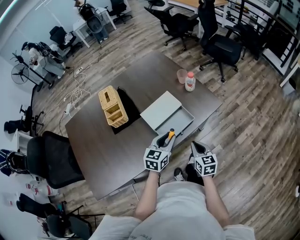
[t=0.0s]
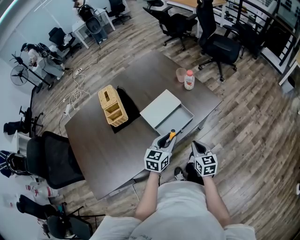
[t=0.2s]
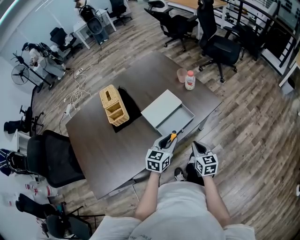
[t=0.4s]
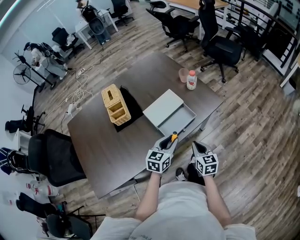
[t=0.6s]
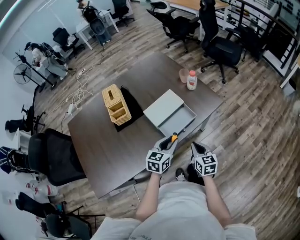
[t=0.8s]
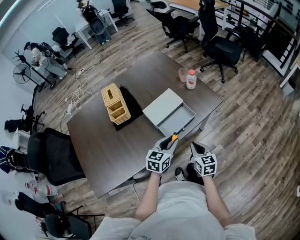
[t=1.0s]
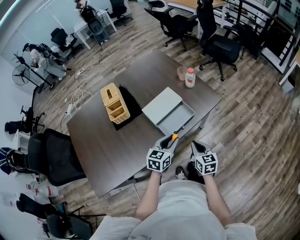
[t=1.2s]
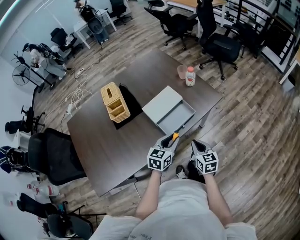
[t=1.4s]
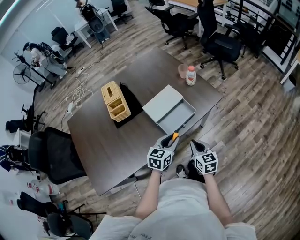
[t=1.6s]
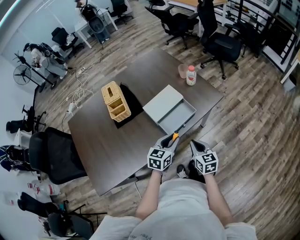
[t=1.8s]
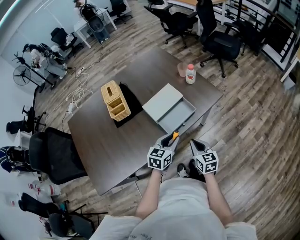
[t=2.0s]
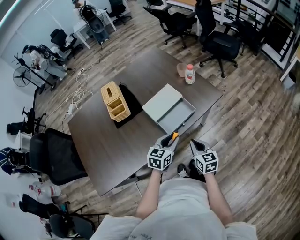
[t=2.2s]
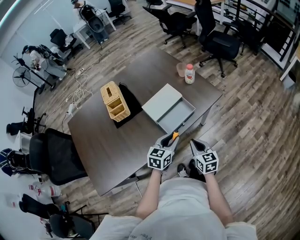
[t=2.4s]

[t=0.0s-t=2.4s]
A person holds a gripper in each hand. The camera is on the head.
t=0.0s to t=1.2s: The left gripper ends up roughly 5 cm from where it was.
t=1.2s to t=2.4s: The grippers make only small movements.

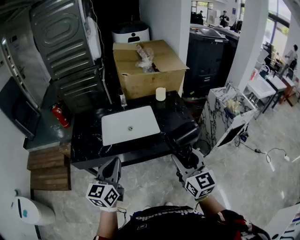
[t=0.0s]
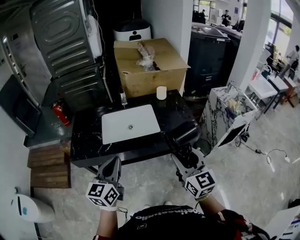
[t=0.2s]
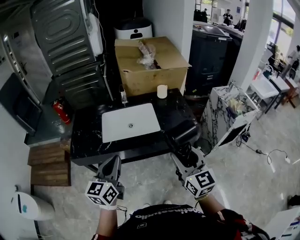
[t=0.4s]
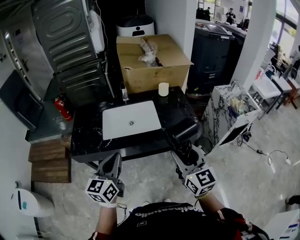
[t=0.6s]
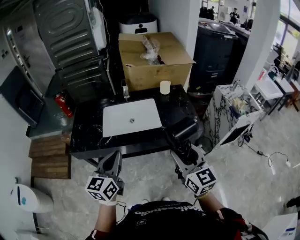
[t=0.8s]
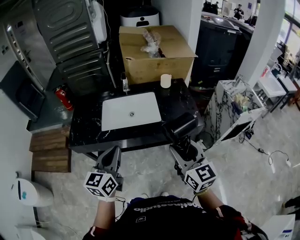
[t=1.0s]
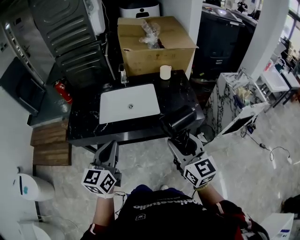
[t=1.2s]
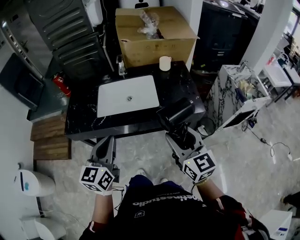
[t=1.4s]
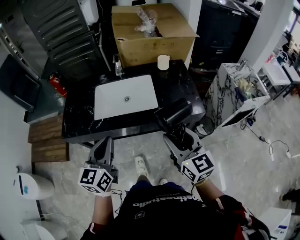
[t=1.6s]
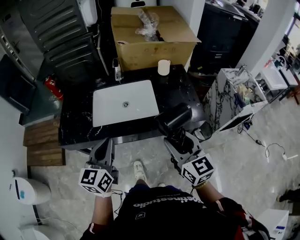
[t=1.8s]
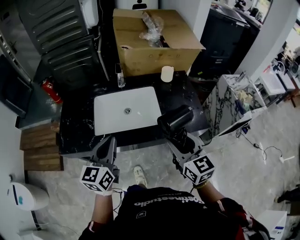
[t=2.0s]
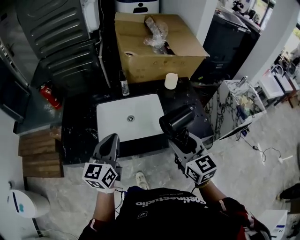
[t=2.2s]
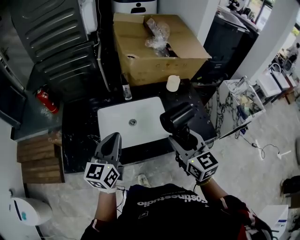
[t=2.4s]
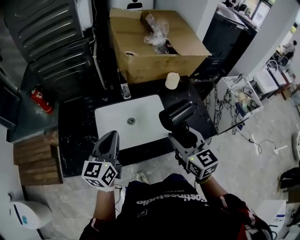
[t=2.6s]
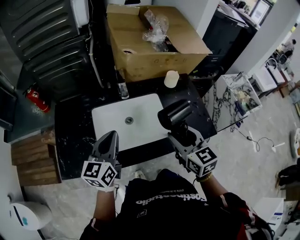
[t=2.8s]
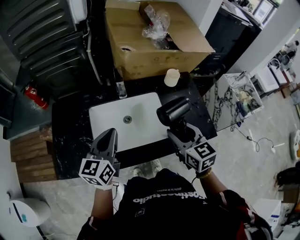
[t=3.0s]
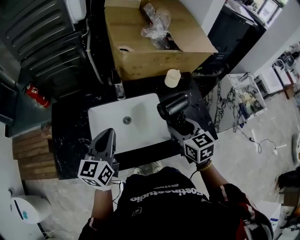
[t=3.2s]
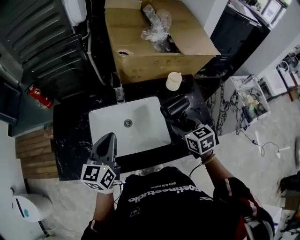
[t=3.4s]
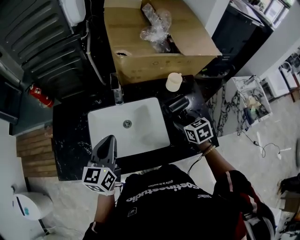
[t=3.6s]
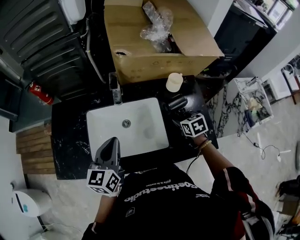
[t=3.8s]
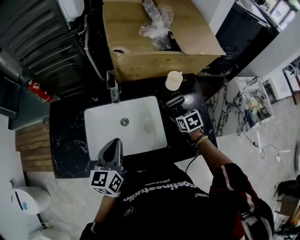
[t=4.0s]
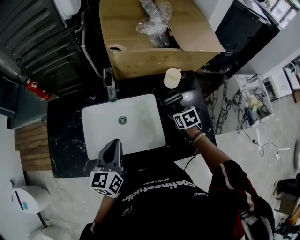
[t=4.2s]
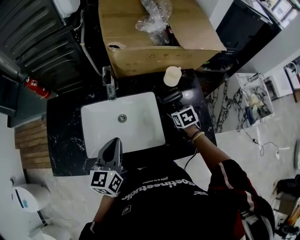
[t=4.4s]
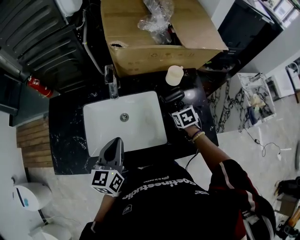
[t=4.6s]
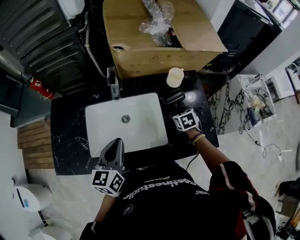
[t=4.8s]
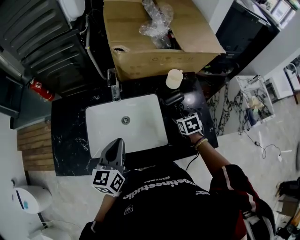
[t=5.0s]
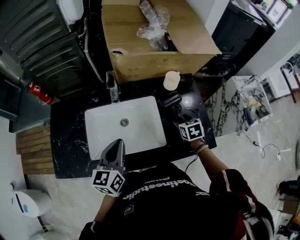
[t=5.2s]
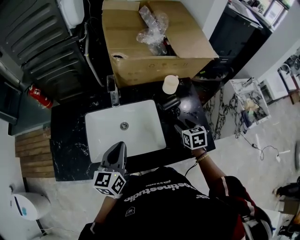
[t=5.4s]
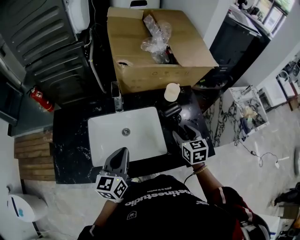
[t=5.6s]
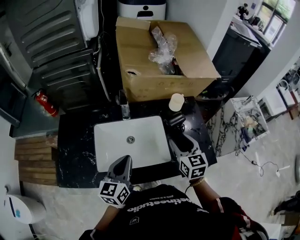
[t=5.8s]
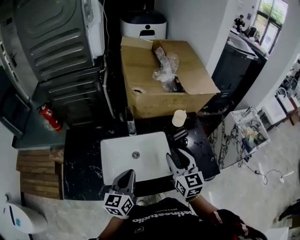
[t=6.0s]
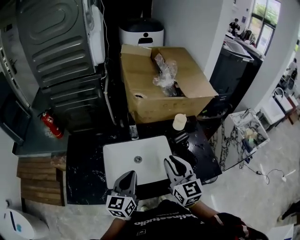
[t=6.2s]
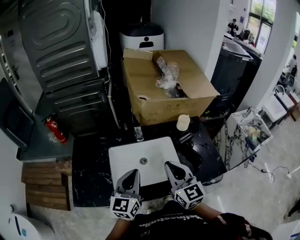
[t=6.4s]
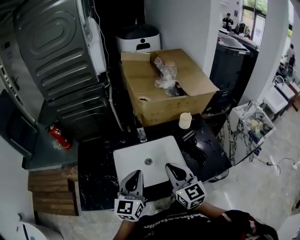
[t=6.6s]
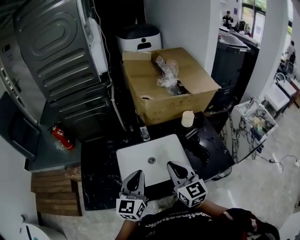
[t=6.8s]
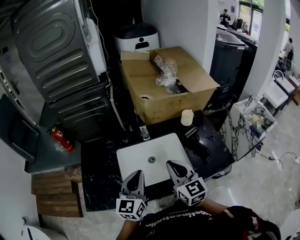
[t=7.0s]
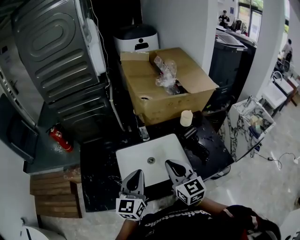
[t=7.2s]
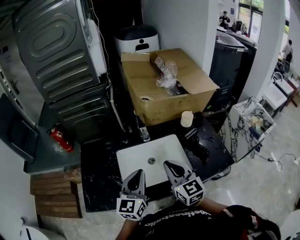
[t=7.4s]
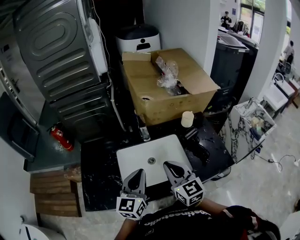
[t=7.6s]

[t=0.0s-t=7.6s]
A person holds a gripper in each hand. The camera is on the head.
t=0.0s to t=1.6s: The right gripper travels forward by some 5 cm; the left gripper shifts by approximately 5 cm.
t=1.6s to t=3.0s: The grippers both shift forward by some 25 cm.
t=3.0s to t=4.6s: The right gripper moves downward, forward and to the right, some 30 cm, and points its fingers some 30 degrees further downward; the left gripper is displaced to the right by some 10 cm.
t=4.6s to t=6.0s: The left gripper changes place by roughly 5 cm, while the right gripper travels upward, to the left and backward by some 30 cm, and tilts its fingers roughly 50 degrees upward.
t=6.0s to t=7.6s: The right gripper shifts roughly 15 cm to the left and backward, and closes up, while the left gripper shifts about 5 cm upward.

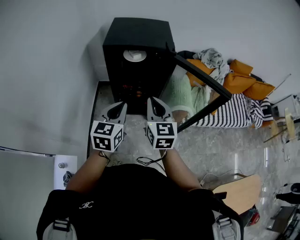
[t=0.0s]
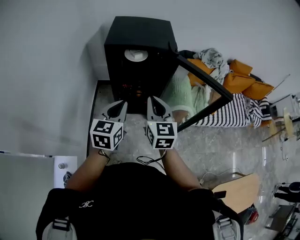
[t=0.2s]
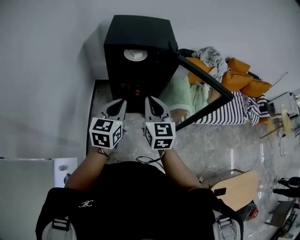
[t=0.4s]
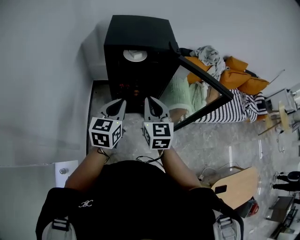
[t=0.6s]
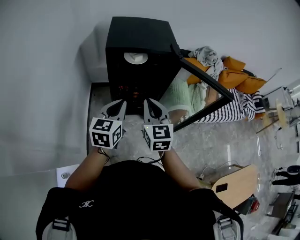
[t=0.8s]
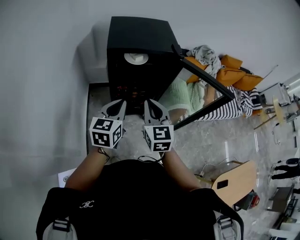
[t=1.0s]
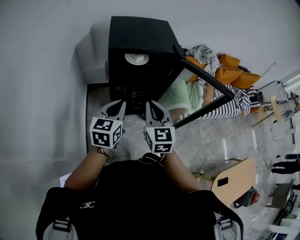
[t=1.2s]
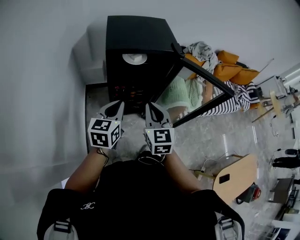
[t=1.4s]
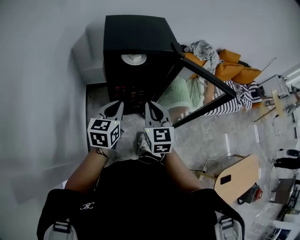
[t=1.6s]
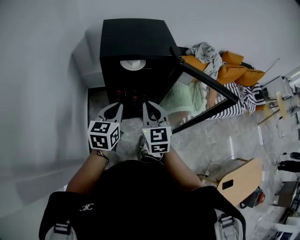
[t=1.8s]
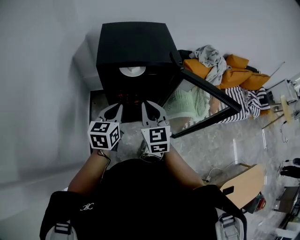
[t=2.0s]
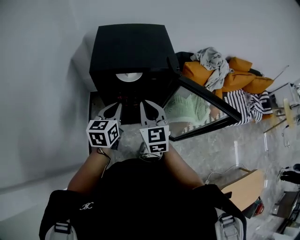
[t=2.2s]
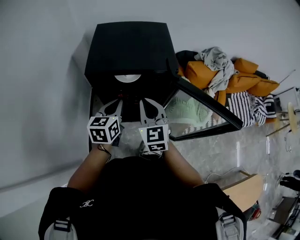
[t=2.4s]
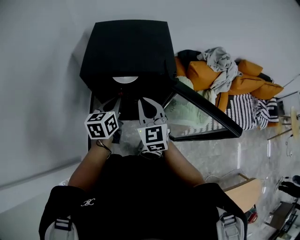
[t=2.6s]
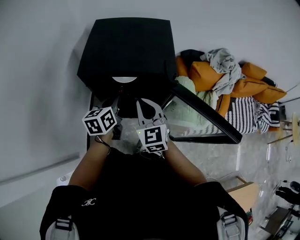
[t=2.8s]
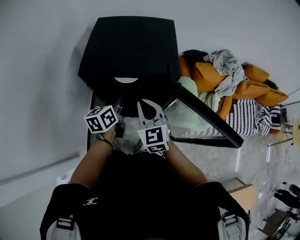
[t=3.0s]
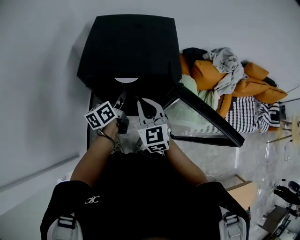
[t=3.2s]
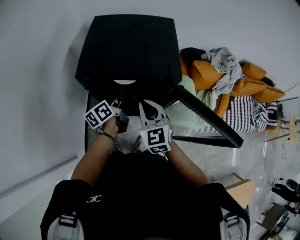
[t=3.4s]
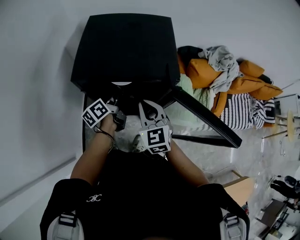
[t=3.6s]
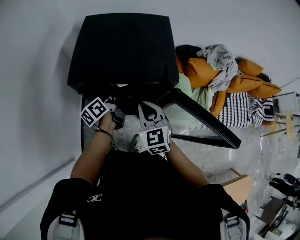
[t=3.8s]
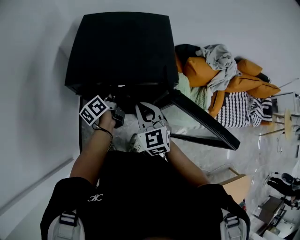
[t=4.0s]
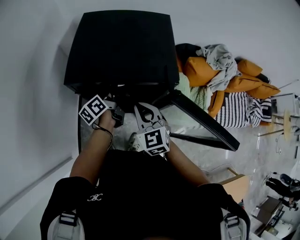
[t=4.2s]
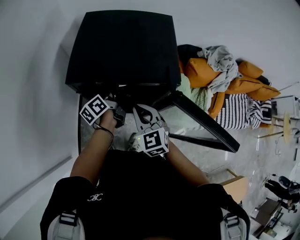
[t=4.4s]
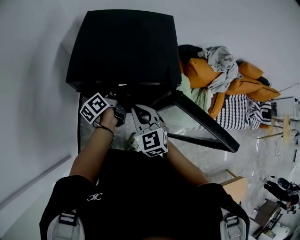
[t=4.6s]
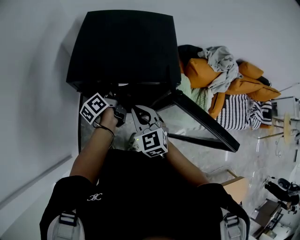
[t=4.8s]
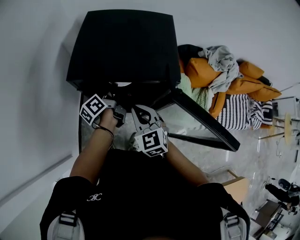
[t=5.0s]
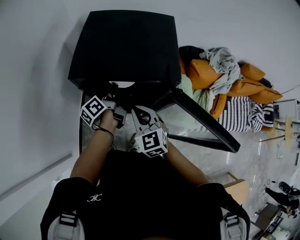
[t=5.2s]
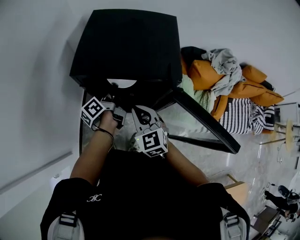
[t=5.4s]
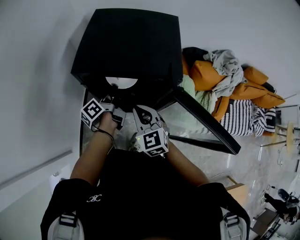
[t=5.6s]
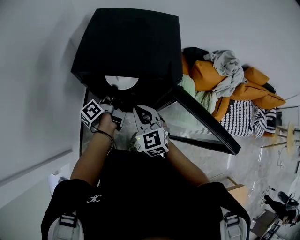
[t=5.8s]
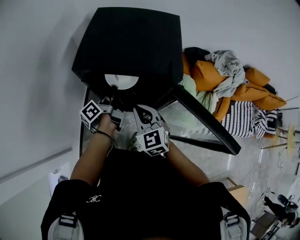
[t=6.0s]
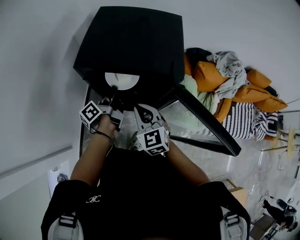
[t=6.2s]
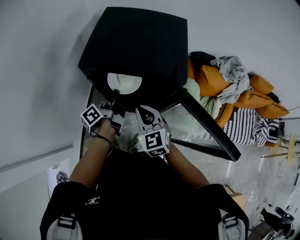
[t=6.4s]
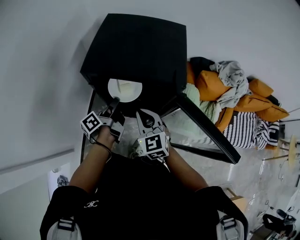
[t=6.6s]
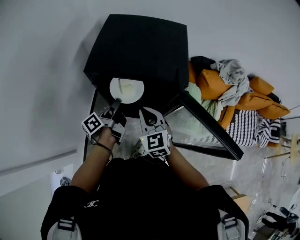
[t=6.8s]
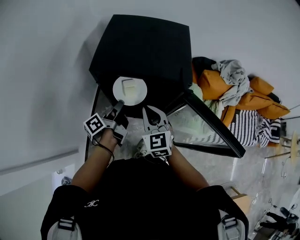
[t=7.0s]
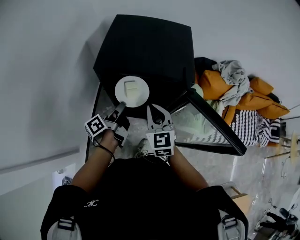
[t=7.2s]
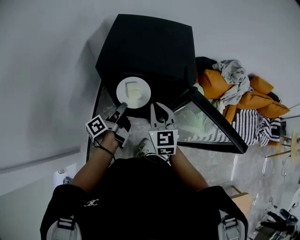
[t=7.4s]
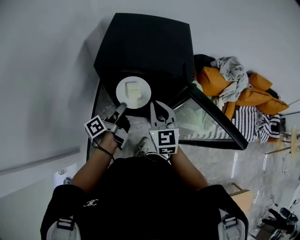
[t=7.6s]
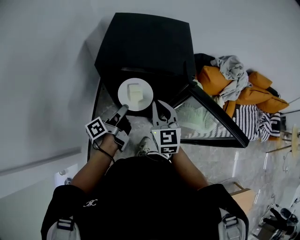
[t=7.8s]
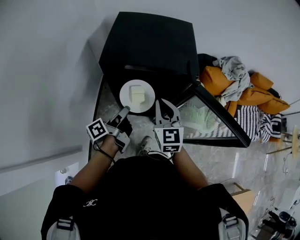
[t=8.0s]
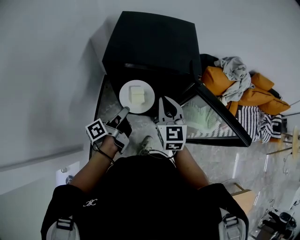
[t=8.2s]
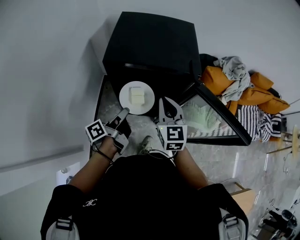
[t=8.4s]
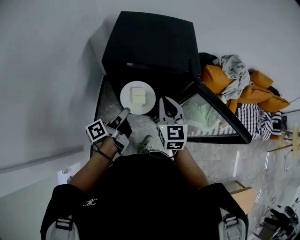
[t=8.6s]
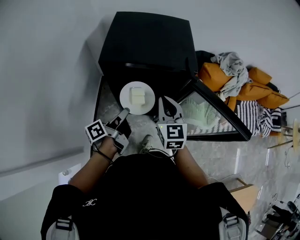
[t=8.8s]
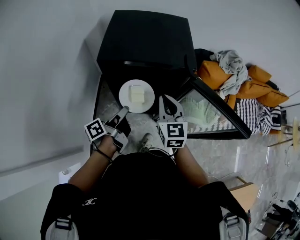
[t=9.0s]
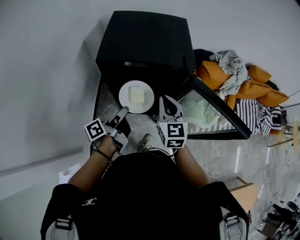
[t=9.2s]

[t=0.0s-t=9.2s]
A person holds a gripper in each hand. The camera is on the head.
t=0.0s to t=1.6s: The left gripper heads to the left and forward, covering roughly 15 cm. The right gripper moves to the left, approximately 10 cm.
t=1.6s to t=3.0s: The grippers both shift forward by roughly 20 cm. The left gripper rotates roughly 30 degrees, while the right gripper rotates about 20 degrees.
t=3.0s to t=4.6s: The left gripper heads forward, covering roughly 10 cm, and turns by approximately 30 degrees.
t=4.6s to t=6.2s: The left gripper goes some 5 cm backward, and rotates approximately 20 degrees.
t=6.2s to t=7.6s: The left gripper shifts roughly 10 cm backward.
t=7.6s to t=9.2s: The grippers make only small movements.

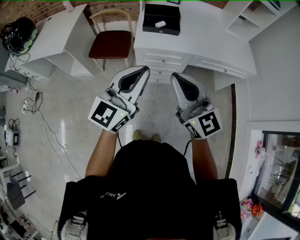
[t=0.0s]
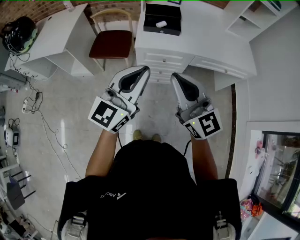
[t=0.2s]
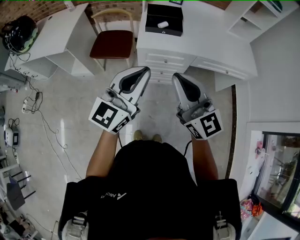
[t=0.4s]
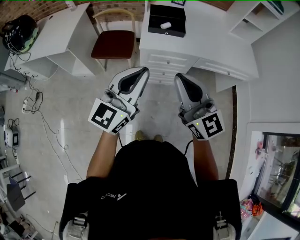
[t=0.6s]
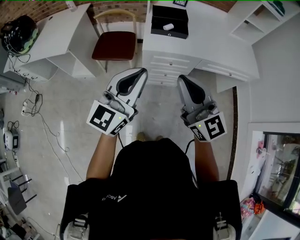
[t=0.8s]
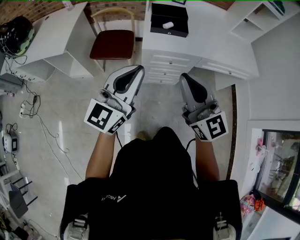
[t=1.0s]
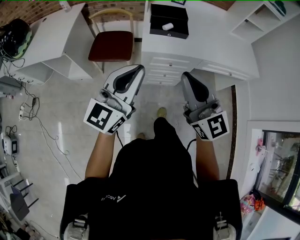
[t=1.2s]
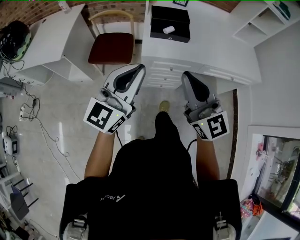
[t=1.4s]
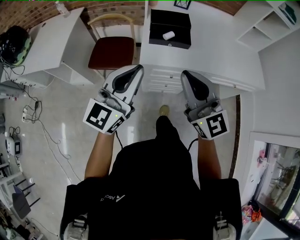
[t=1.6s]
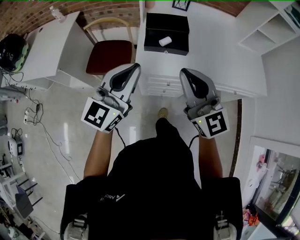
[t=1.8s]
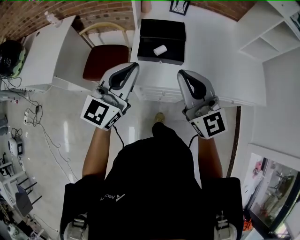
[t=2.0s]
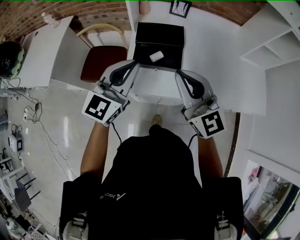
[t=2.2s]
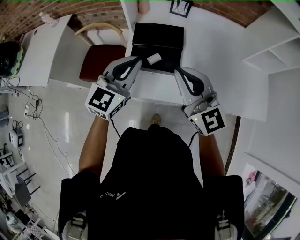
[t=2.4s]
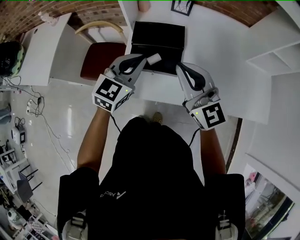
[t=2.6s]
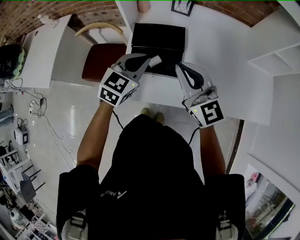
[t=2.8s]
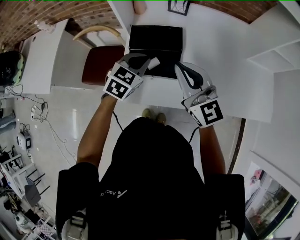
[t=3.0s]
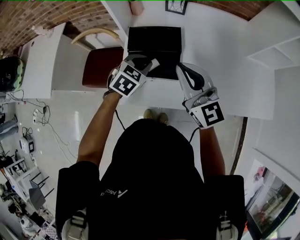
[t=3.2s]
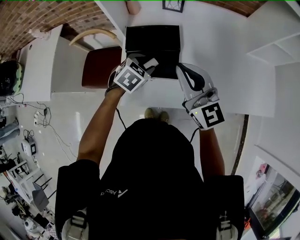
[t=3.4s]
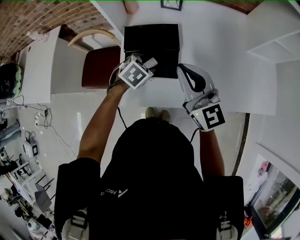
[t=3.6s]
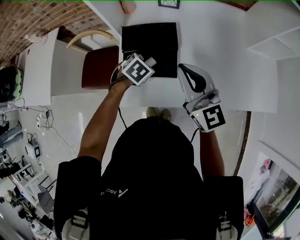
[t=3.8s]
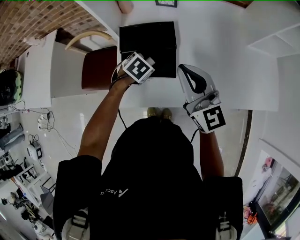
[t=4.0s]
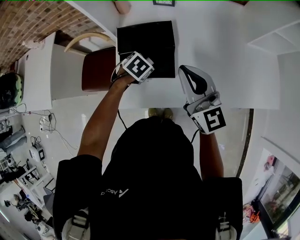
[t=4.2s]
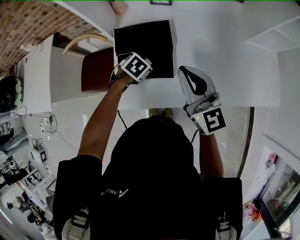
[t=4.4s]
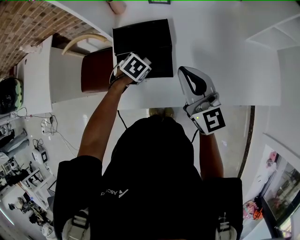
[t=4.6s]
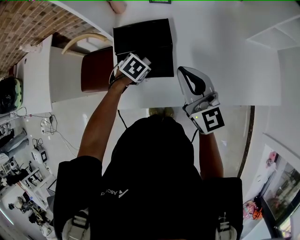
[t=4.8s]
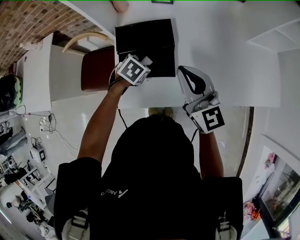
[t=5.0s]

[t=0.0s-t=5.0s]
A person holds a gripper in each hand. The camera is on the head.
t=0.0s to t=1.6s: The left gripper goes some 20 cm forward and to the left. Meanwhile the right gripper is displaced forward by some 15 cm.
t=1.6s to t=3.4s: The right gripper heads forward and to the right, covering about 35 cm; the left gripper travels forward, downward and to the right by about 50 cm, tilts its fingers some 60 degrees downward, and opens its fingers.
t=3.4s to t=5.0s: The left gripper heads downward, covering approximately 10 cm.
